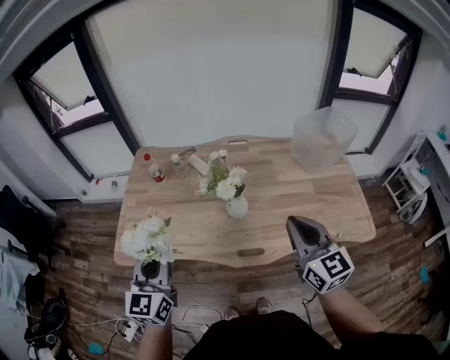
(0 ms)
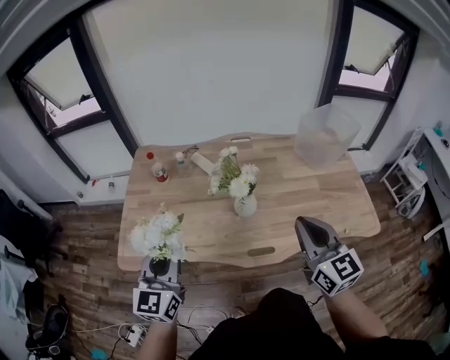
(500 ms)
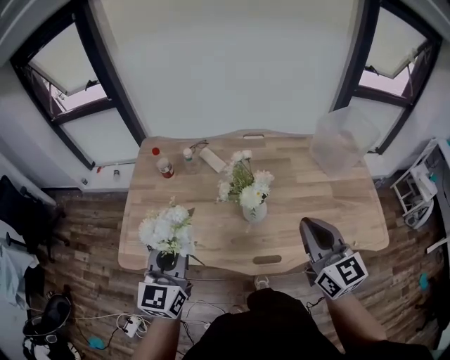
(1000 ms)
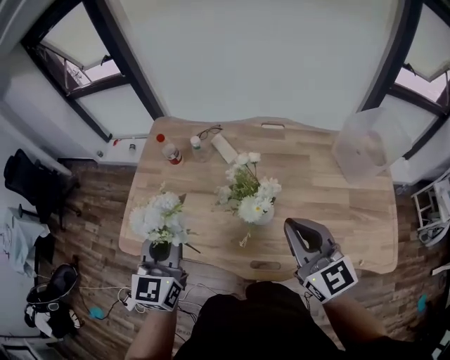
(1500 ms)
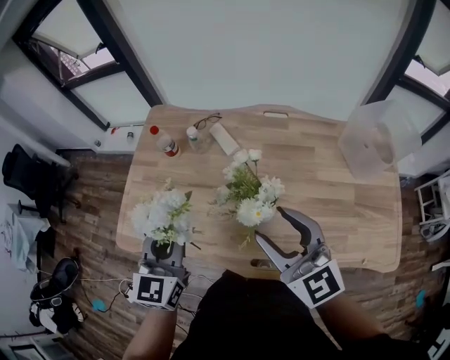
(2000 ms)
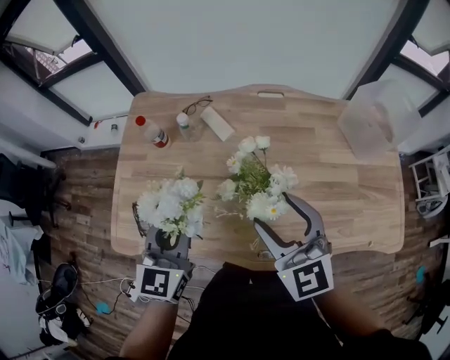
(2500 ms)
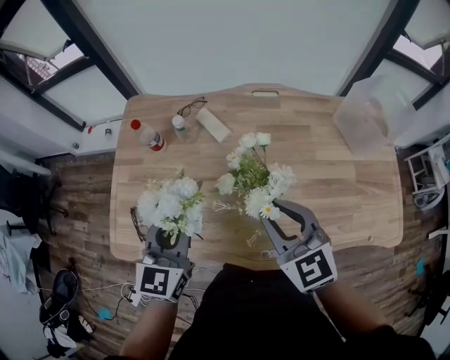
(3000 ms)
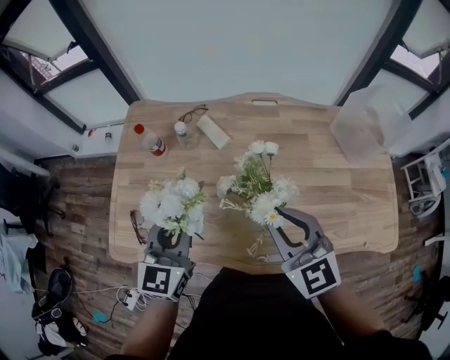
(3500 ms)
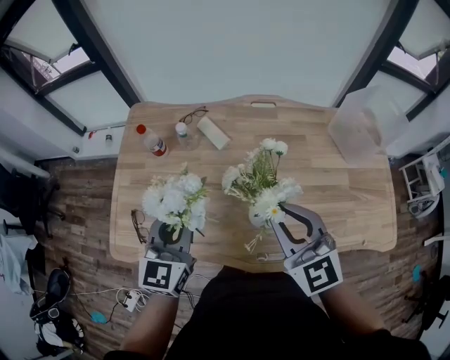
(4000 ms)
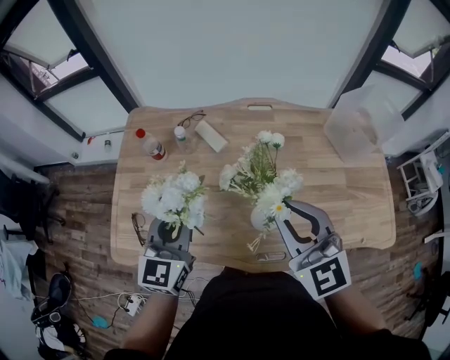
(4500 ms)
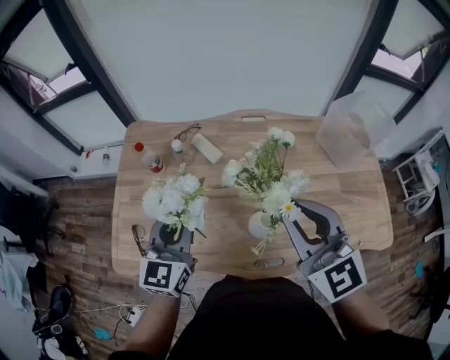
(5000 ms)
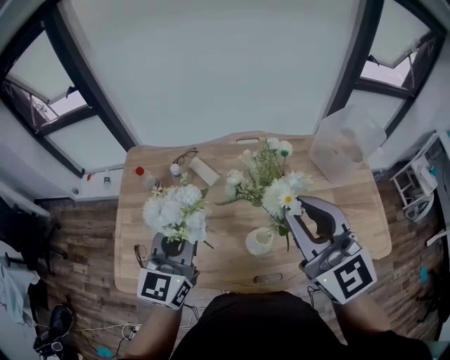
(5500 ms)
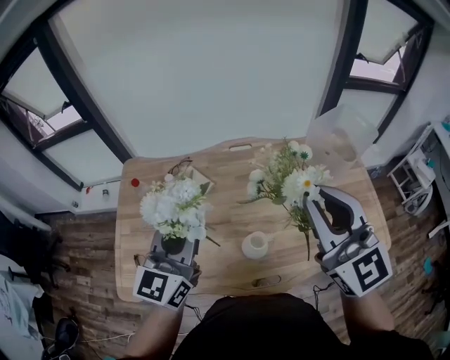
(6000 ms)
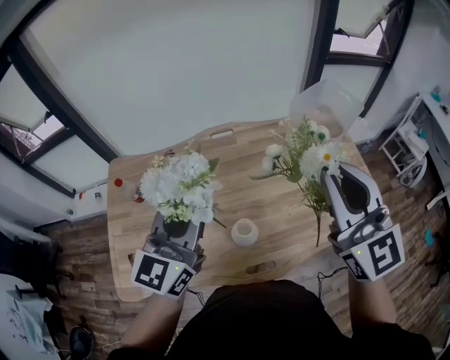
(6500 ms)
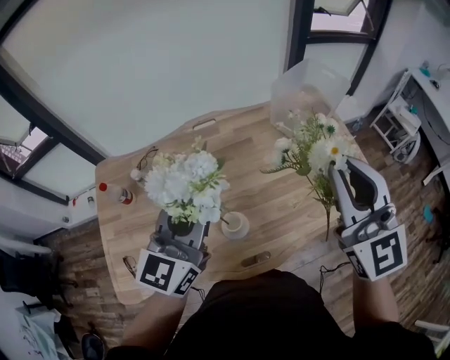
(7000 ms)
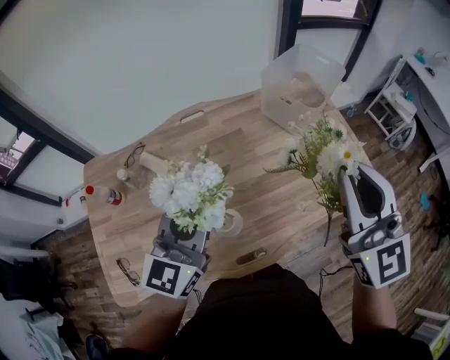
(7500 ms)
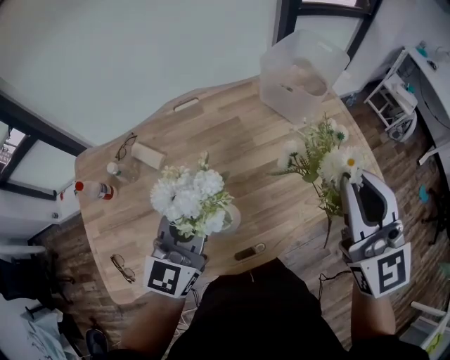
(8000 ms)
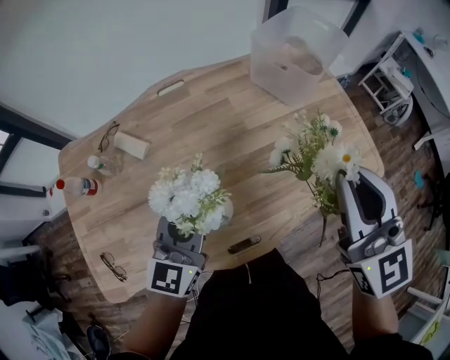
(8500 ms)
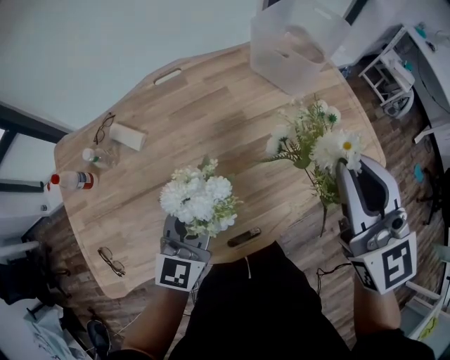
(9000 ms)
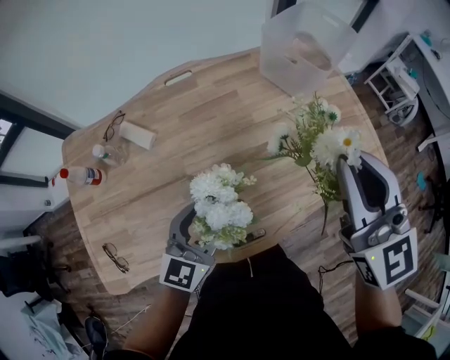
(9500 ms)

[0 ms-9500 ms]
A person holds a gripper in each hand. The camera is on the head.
0 ms to 2000 ms: The left gripper travels forward by about 15 cm. The right gripper heads forward and to the left, covering about 20 cm, changes its angle by roughly 20 degrees, and opens up.
2000 ms to 4000 ms: The left gripper moves roughly 5 cm. The right gripper closes its fingers.
4000 ms to 5500 ms: The right gripper shifts roughly 15 cm upward. The left gripper moves upward and to the right, about 10 cm.
5500 ms to 7500 ms: The left gripper moves approximately 15 cm, and turns by some 20 degrees; the right gripper changes place by approximately 20 cm, and rotates some 30 degrees.
7500 ms to 9500 ms: The left gripper travels downward by some 15 cm, and opens up. Meanwhile the right gripper moves downward, about 5 cm.

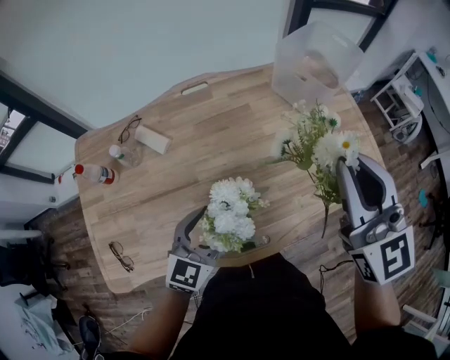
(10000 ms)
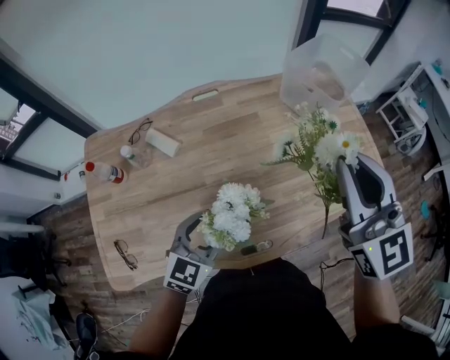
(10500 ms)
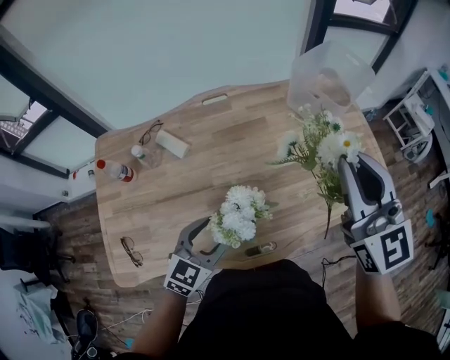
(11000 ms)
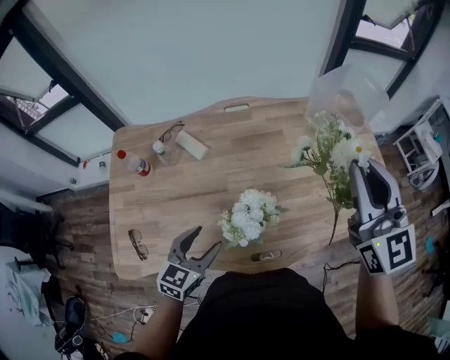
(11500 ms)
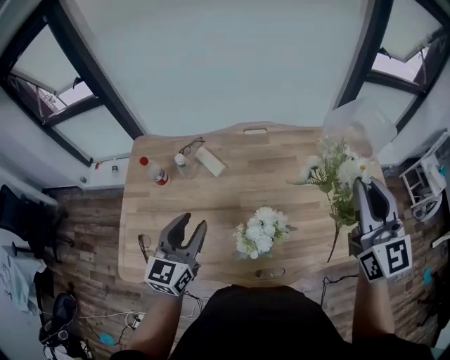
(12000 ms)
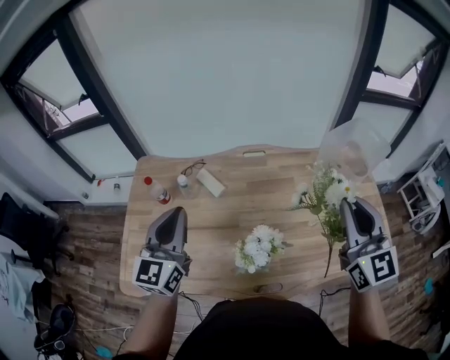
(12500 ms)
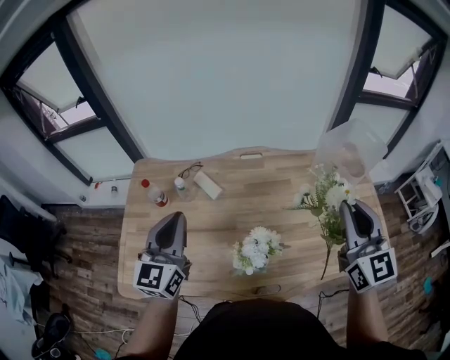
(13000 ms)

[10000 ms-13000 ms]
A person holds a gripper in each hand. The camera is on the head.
10000 ms to 11500 ms: The left gripper travels to the left and backward by some 10 cm.
11500 ms to 13000 ms: The left gripper travels upward, forward and to the left by roughly 25 cm, swivels about 40 degrees, and closes up.

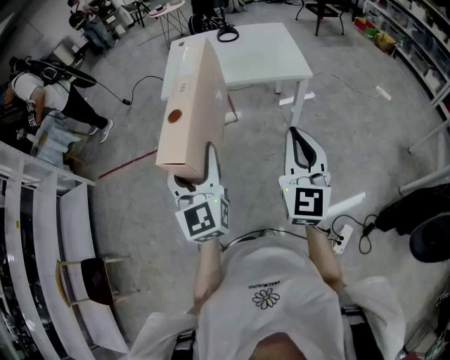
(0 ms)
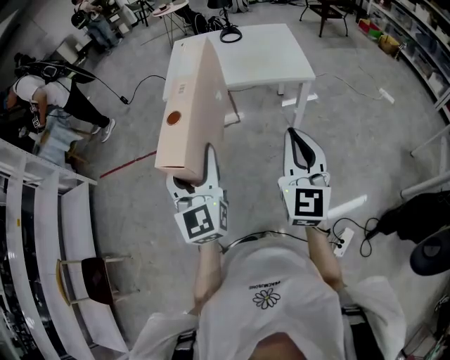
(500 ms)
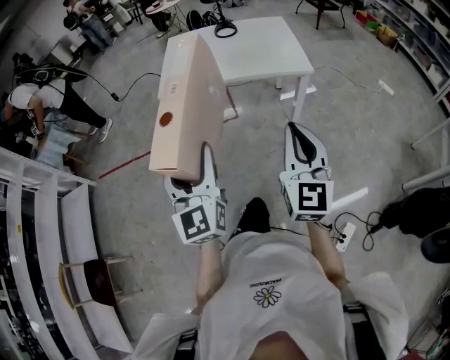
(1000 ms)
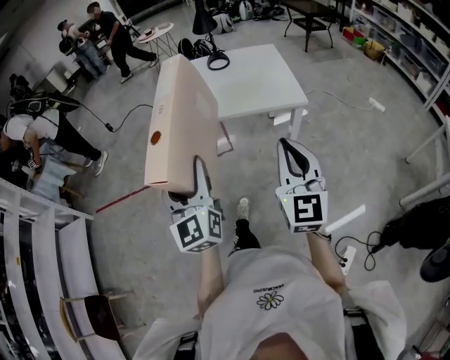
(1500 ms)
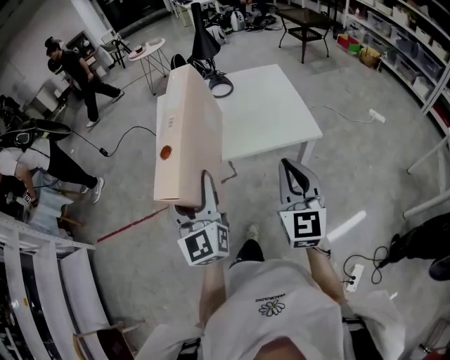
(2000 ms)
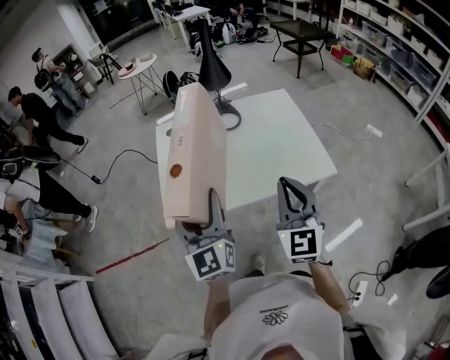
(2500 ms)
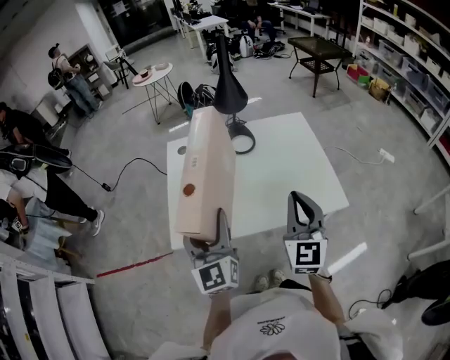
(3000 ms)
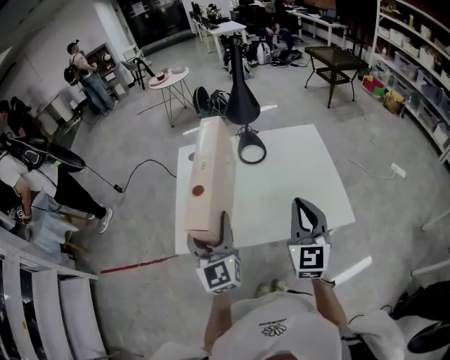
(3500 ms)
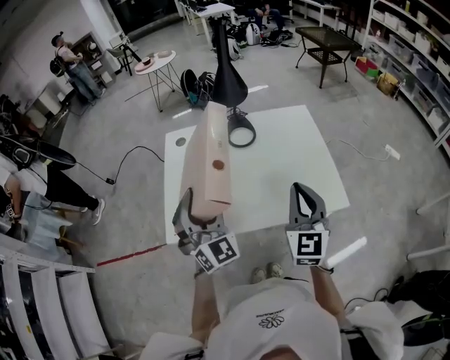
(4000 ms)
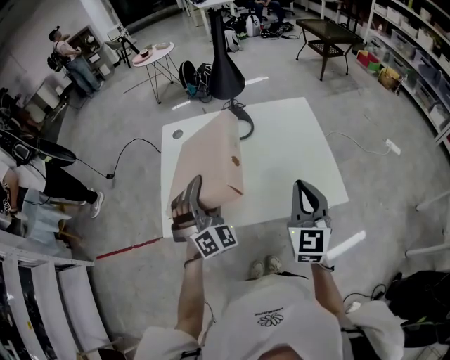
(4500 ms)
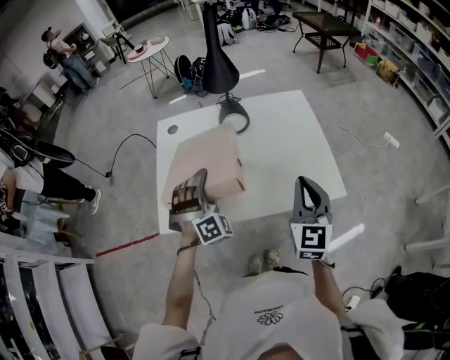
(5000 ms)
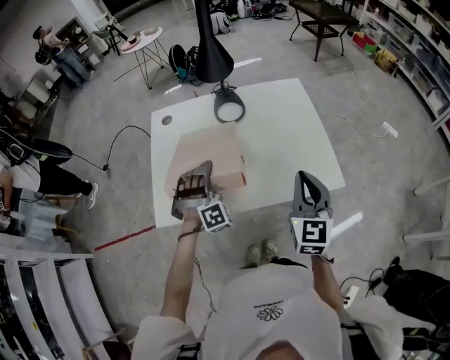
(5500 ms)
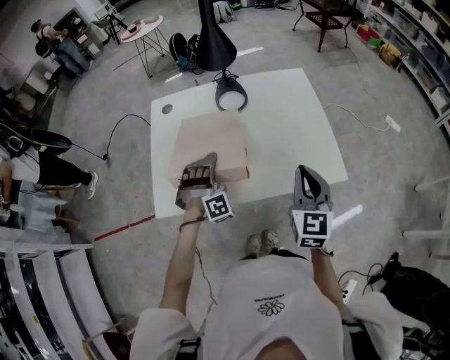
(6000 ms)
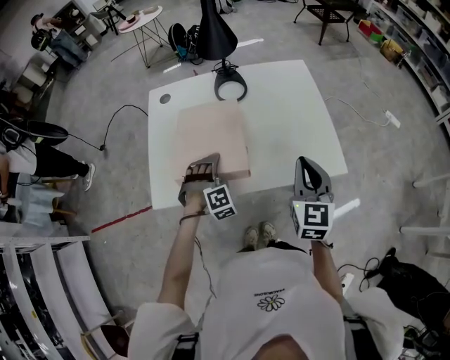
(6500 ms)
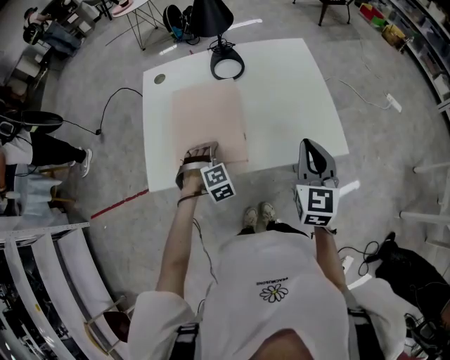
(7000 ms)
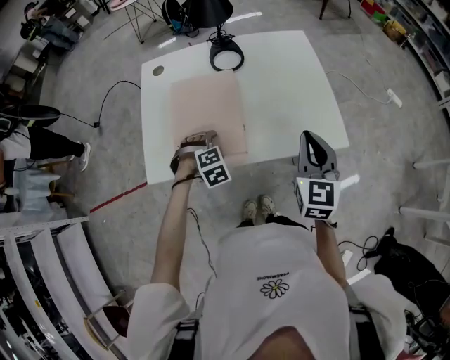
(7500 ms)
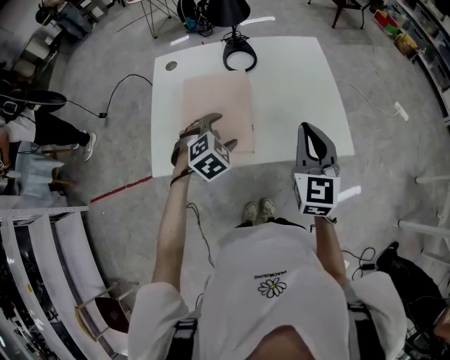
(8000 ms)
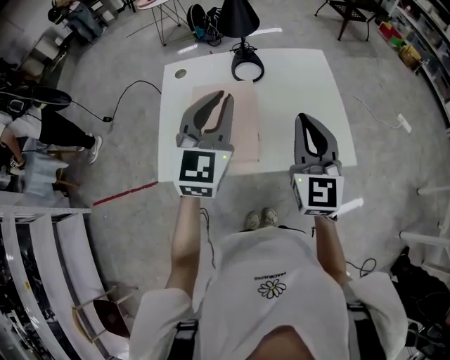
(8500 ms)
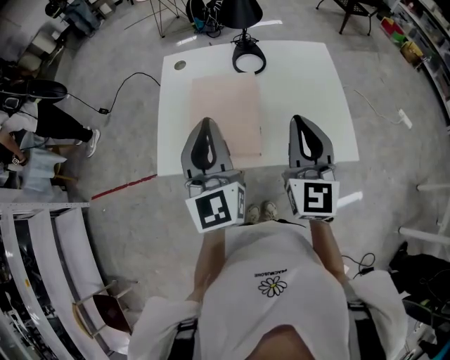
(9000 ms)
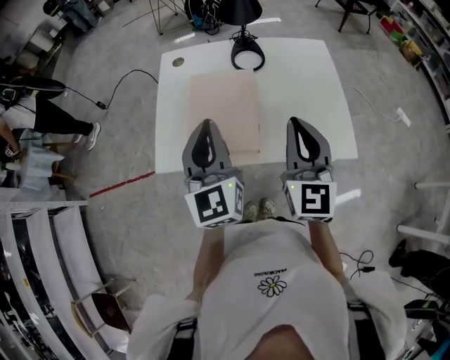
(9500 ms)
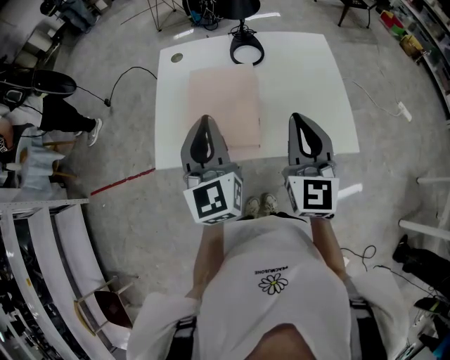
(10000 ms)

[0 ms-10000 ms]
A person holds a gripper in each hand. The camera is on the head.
0 ms to 2000 ms: The two grippers go some 30 cm forward.
2000 ms to 4000 ms: The grippers both shift forward by roughly 30 cm. The left gripper twists roughly 40 degrees clockwise, seen from behind.
4000 ms to 6000 ms: The right gripper travels downward by about 5 cm. Meanwhile the left gripper heads downward, covering approximately 20 cm, and rolls clockwise, seen from behind, by approximately 50 degrees.
6000 ms to 8000 ms: The left gripper travels downward and back again, some 10 cm each way, and rotates roughly 50 degrees.
8000 ms to 10000 ms: The right gripper moves to the left, approximately 5 cm. The left gripper heads upward, covering roughly 20 cm, tilts its fingers some 50 degrees upward, and closes.

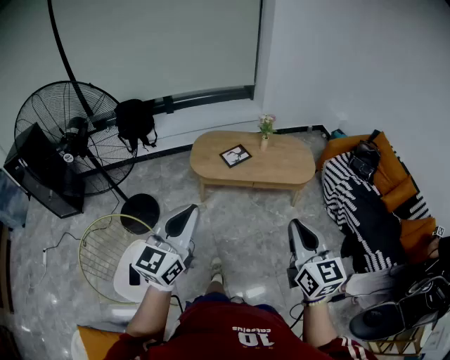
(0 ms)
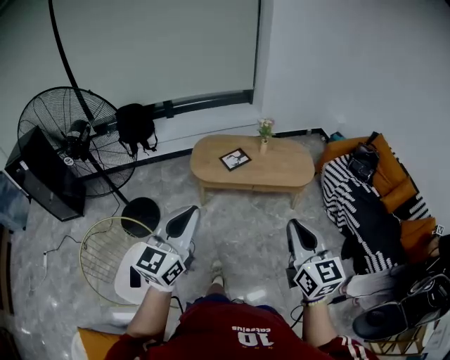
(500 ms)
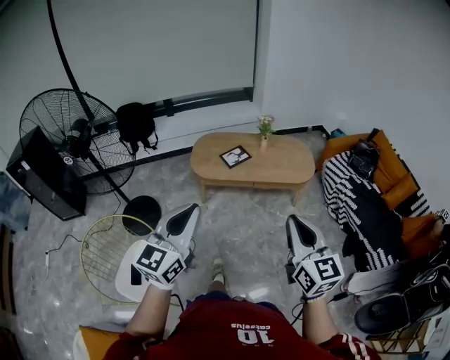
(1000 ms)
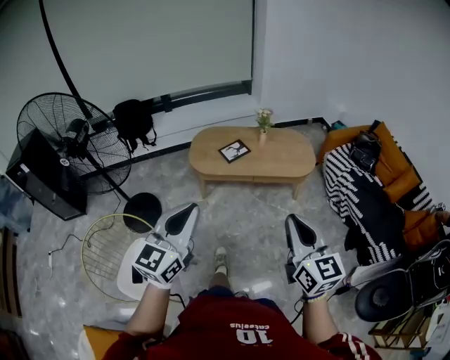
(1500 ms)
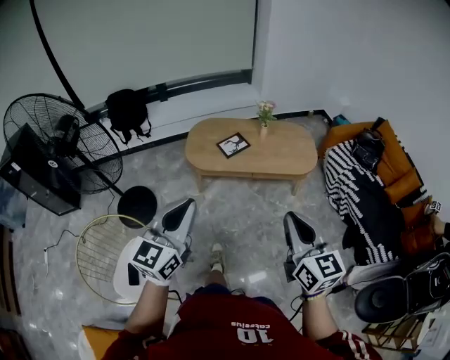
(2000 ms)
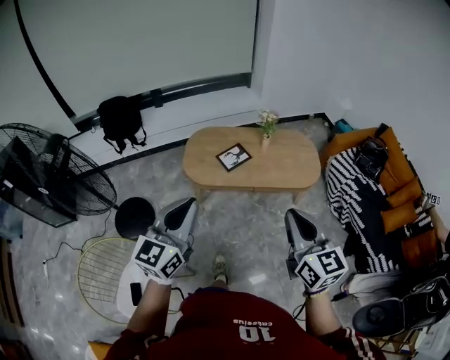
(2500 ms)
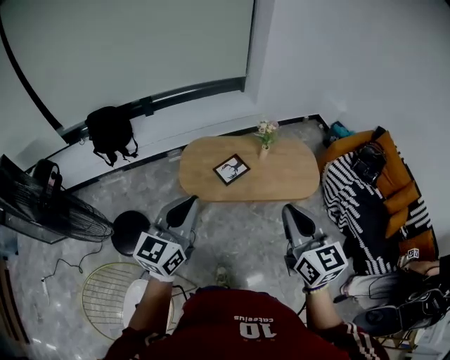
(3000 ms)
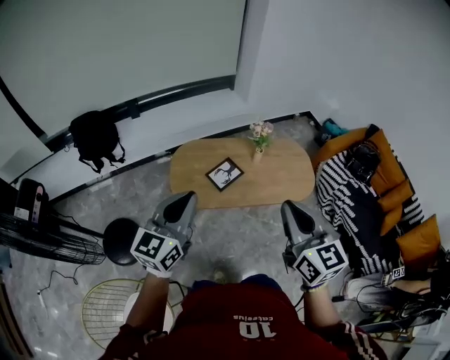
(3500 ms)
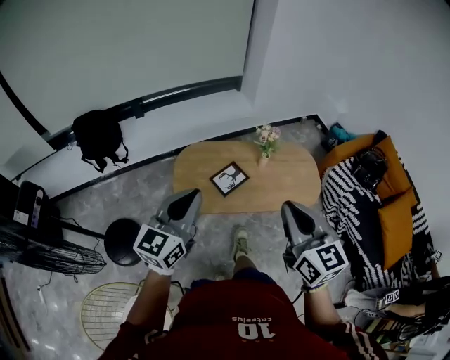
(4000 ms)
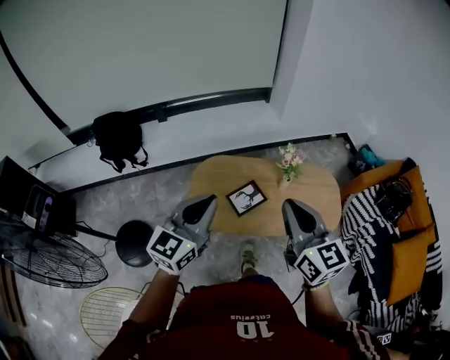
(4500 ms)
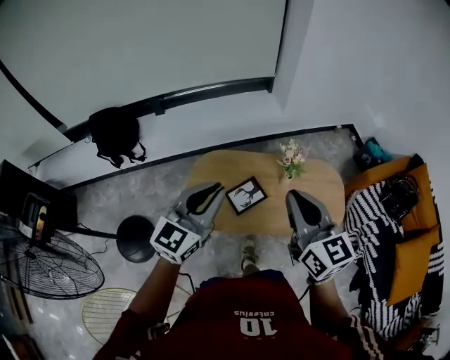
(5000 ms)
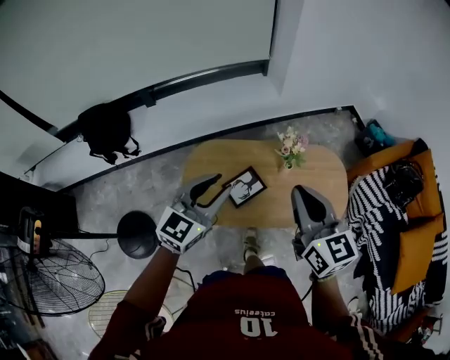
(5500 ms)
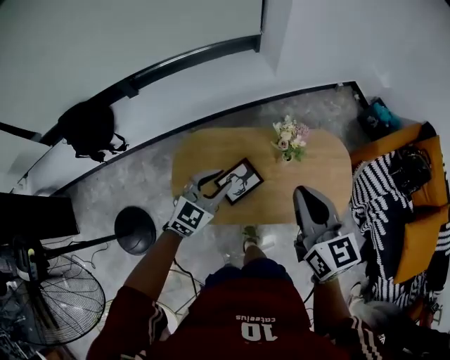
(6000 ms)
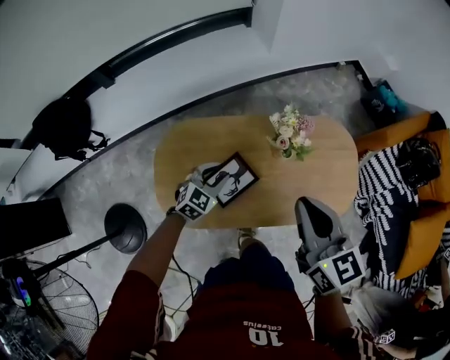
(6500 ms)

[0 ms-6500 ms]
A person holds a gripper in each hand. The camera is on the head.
0 ms to 2000 ms: The grippers both shift forward by roughly 5 cm.
2000 ms to 4500 ms: The two grippers travel together, forward, about 50 cm.
4500 ms to 6500 ms: The left gripper heads downward and forward, covering roughly 50 cm, angles its fingers downward, by approximately 40 degrees, and opens; the right gripper heads downward and forward, covering about 30 cm.
